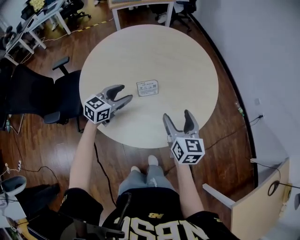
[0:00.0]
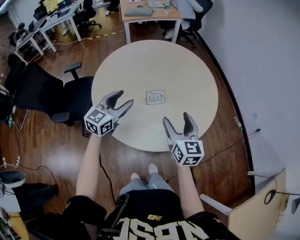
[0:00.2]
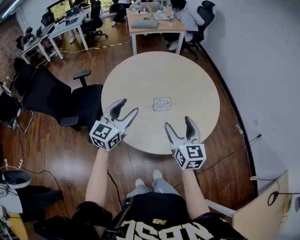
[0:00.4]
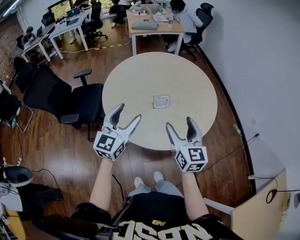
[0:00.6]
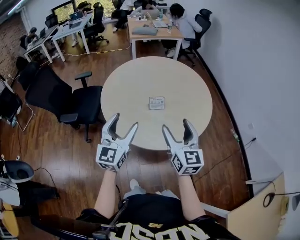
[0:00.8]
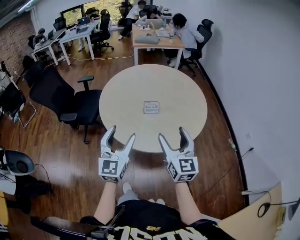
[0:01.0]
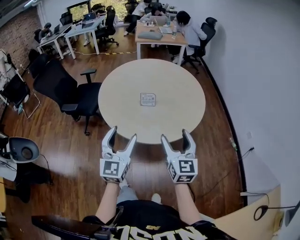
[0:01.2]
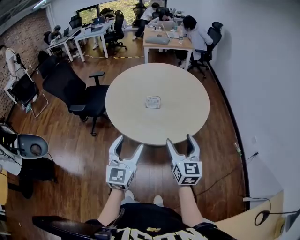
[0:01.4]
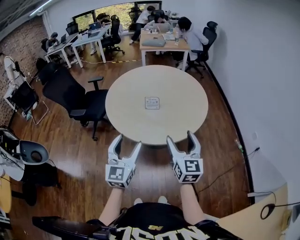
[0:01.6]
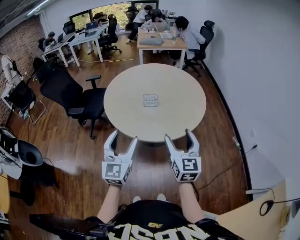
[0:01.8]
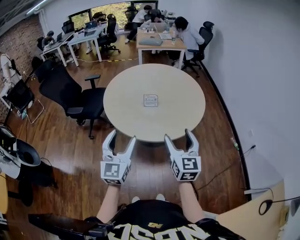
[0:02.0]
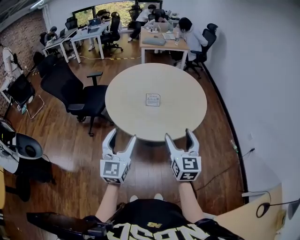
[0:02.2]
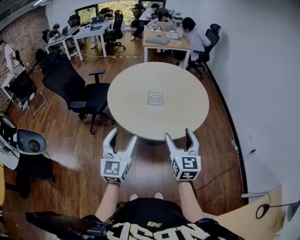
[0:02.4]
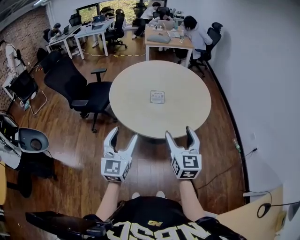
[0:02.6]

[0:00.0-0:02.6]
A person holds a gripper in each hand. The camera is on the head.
0:00.0 to 0:01.2: The left gripper ends up about 40 cm from where it was, and swivels roughly 50 degrees. The right gripper shifts by some 25 cm, and swivels about 20 degrees.
0:01.2 to 0:02.6: Both grippers move backward, some 5 cm.

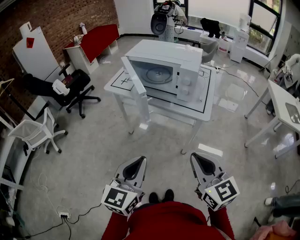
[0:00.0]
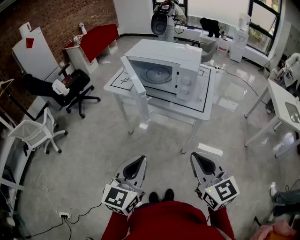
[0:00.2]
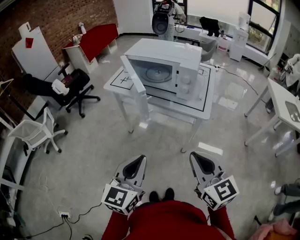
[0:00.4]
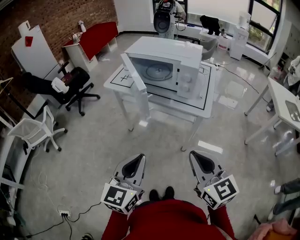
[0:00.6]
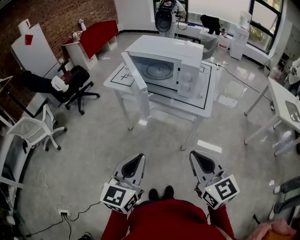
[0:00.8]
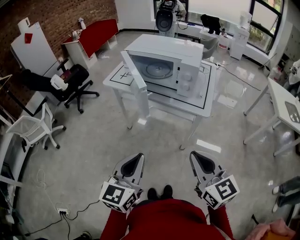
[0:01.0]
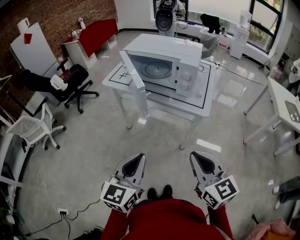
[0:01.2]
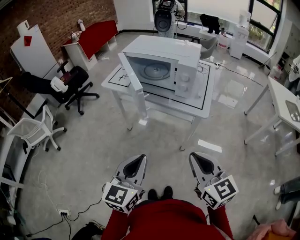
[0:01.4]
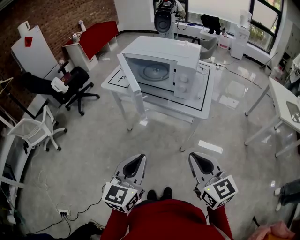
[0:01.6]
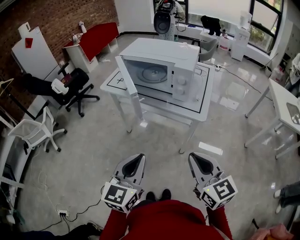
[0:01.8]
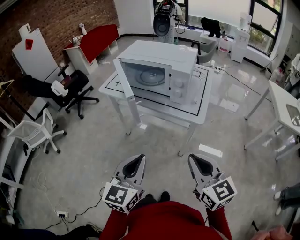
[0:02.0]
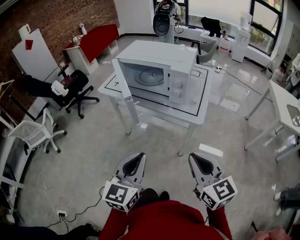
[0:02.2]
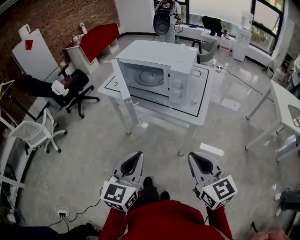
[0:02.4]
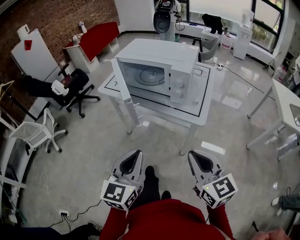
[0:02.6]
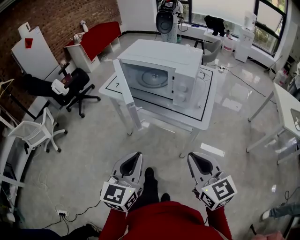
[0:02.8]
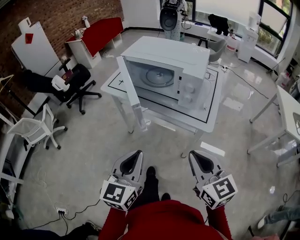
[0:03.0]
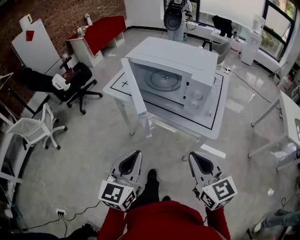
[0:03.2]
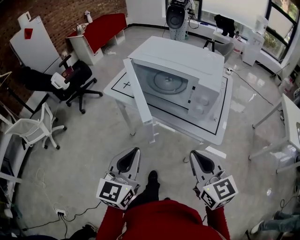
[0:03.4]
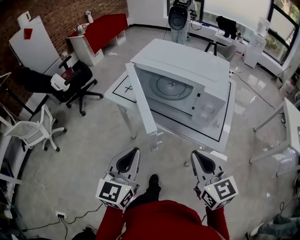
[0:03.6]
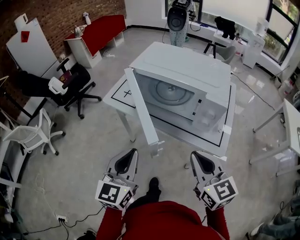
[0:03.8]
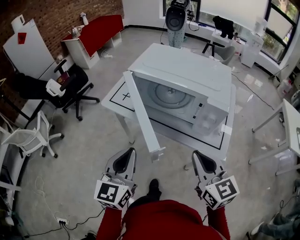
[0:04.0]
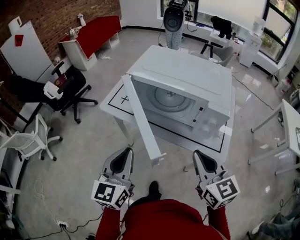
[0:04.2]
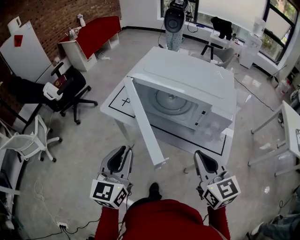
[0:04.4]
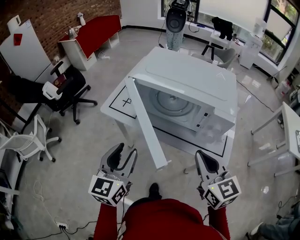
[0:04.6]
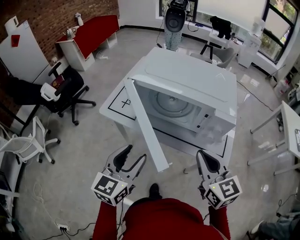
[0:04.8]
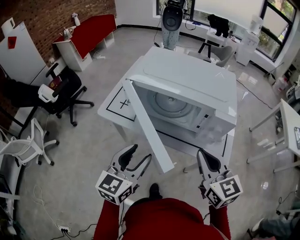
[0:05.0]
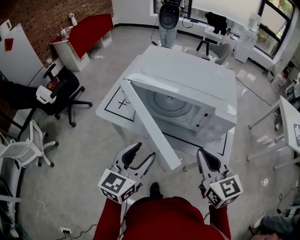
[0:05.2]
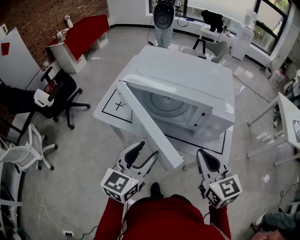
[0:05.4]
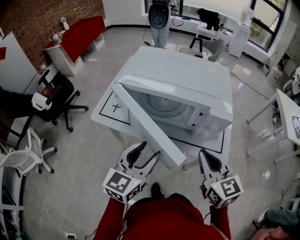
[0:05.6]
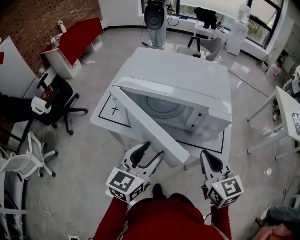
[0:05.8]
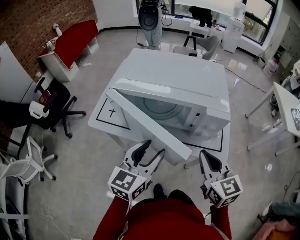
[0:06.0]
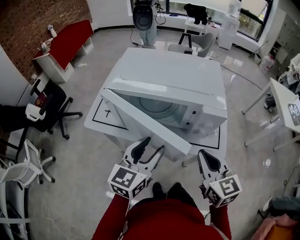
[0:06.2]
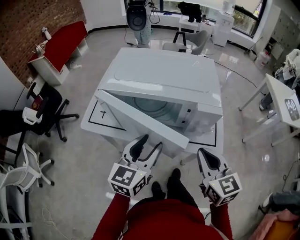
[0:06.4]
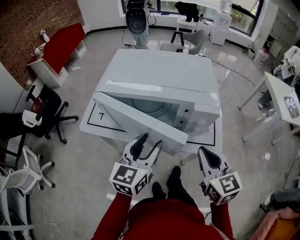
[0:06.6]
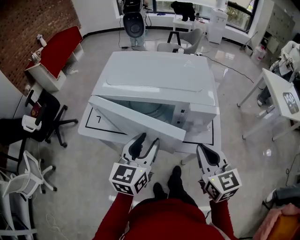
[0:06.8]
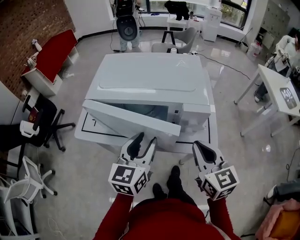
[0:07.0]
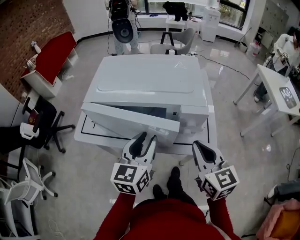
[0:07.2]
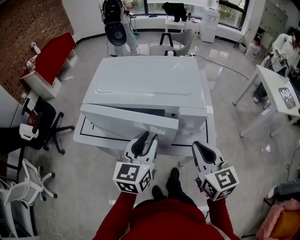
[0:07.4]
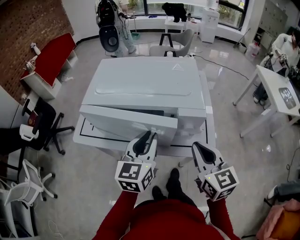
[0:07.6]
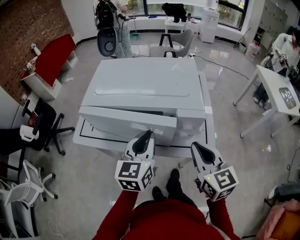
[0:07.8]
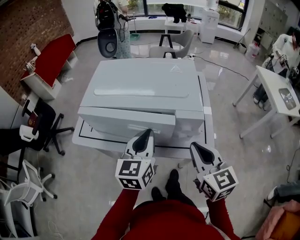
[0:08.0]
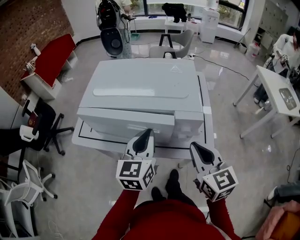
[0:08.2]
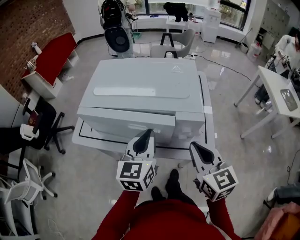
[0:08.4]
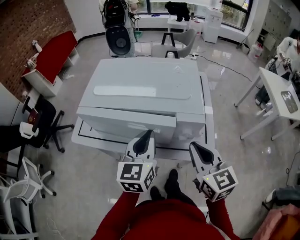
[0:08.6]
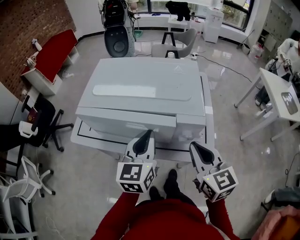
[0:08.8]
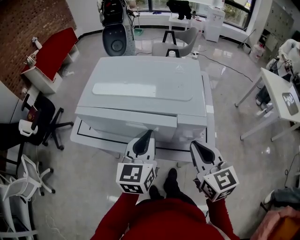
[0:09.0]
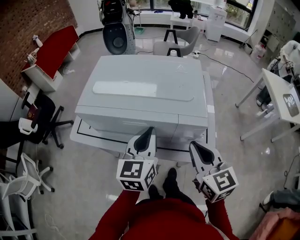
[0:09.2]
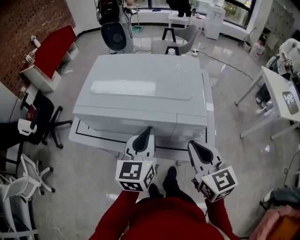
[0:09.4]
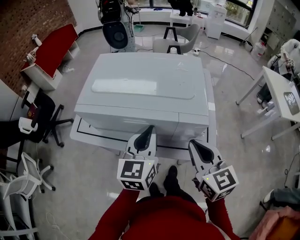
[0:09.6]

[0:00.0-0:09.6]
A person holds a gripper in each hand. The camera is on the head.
0:00.0 to 0:01.6: The grippers move only a little.
0:01.6 to 0:03.2: Both grippers move forward, some 10 cm.
0:03.2 to 0:04.8: Both grippers move forward, about 15 cm. The left gripper opens.
0:04.8 to 0:06.4: The left gripper heads to the right and forward, covering roughly 10 cm.
0:06.4 to 0:08.0: The left gripper moves forward, some 5 cm, and closes up.
0:08.0 to 0:09.6: The grippers make only small movements.

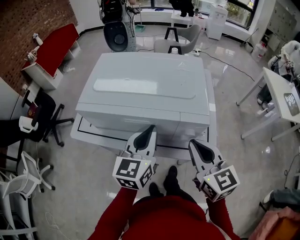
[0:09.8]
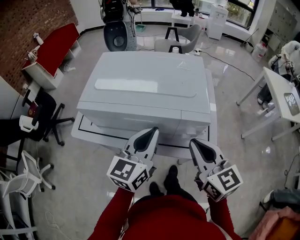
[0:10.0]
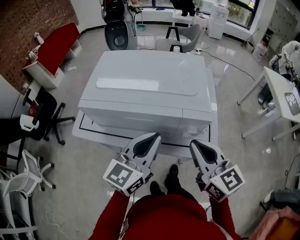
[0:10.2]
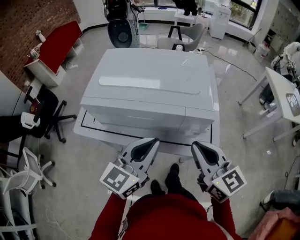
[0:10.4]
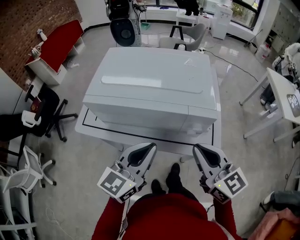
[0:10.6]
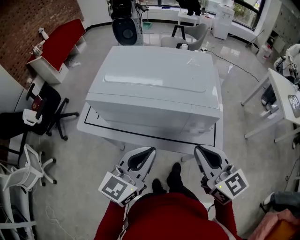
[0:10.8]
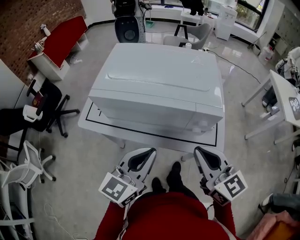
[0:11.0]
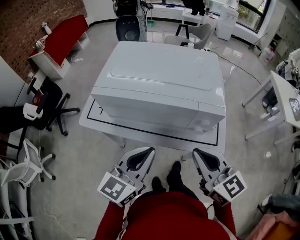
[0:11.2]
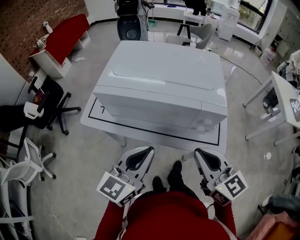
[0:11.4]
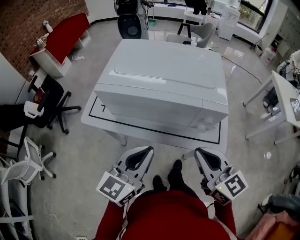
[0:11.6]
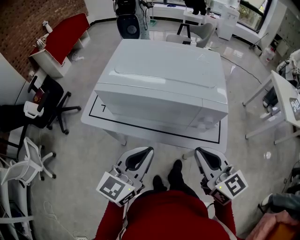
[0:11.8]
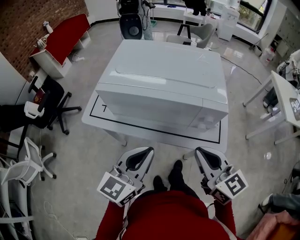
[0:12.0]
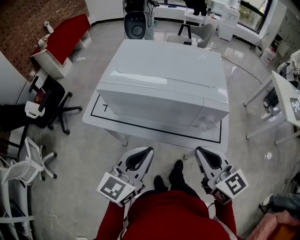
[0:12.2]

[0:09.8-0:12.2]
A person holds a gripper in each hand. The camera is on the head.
0:09.8 to 0:11.0: The left gripper moves backward, approximately 10 cm. Meanwhile the right gripper goes roughly 5 cm backward.
0:11.0 to 0:12.2: The grippers make only small movements.

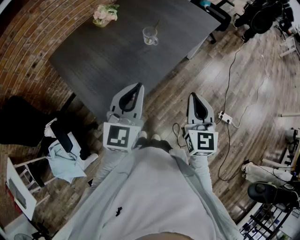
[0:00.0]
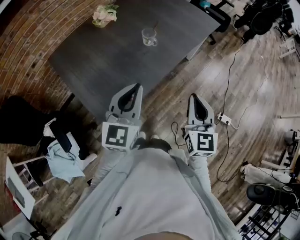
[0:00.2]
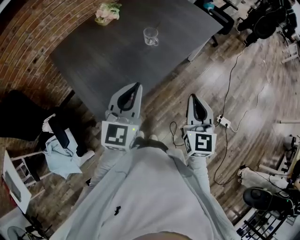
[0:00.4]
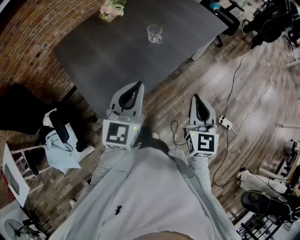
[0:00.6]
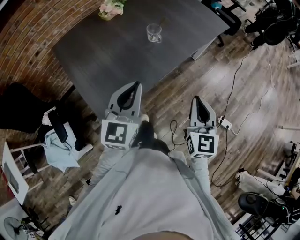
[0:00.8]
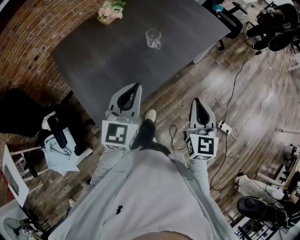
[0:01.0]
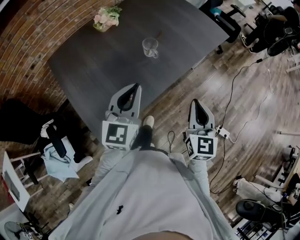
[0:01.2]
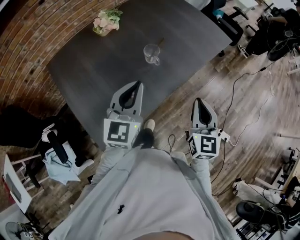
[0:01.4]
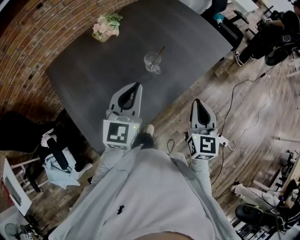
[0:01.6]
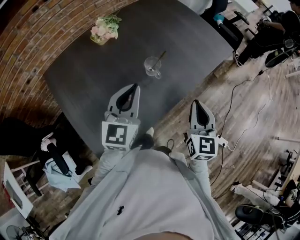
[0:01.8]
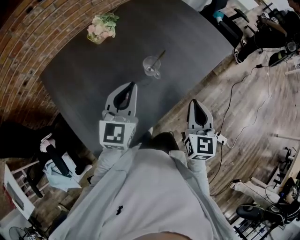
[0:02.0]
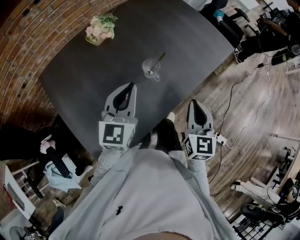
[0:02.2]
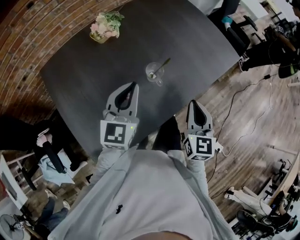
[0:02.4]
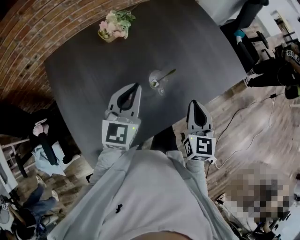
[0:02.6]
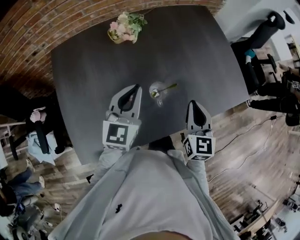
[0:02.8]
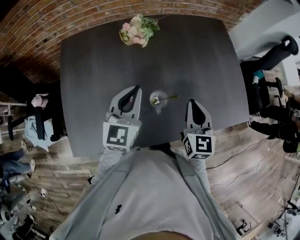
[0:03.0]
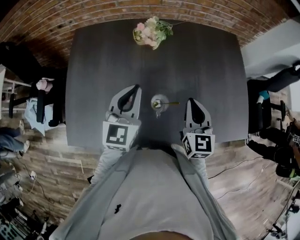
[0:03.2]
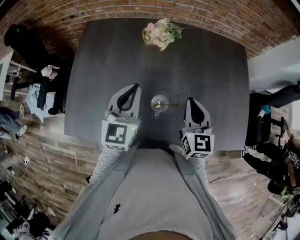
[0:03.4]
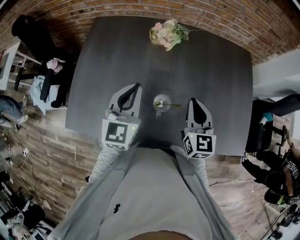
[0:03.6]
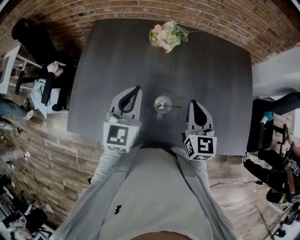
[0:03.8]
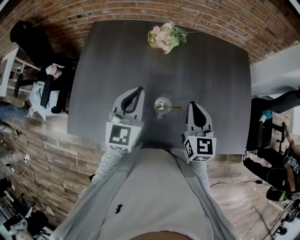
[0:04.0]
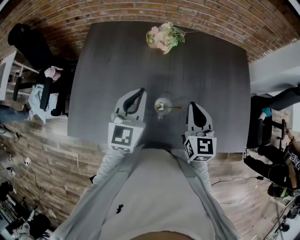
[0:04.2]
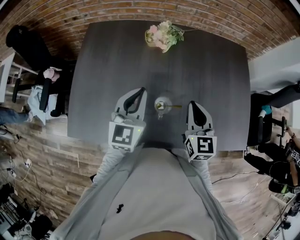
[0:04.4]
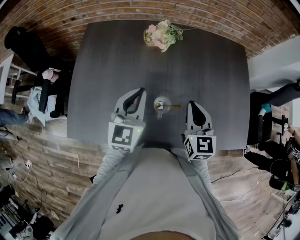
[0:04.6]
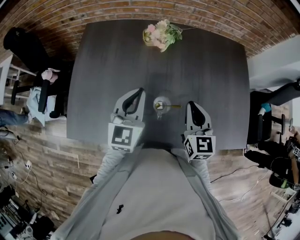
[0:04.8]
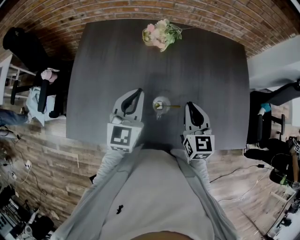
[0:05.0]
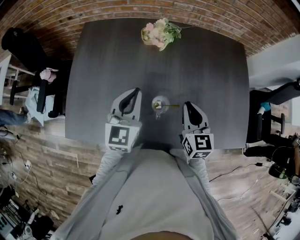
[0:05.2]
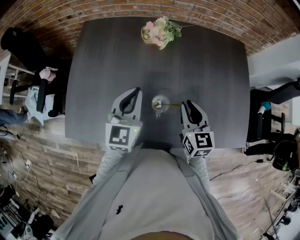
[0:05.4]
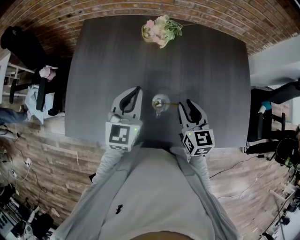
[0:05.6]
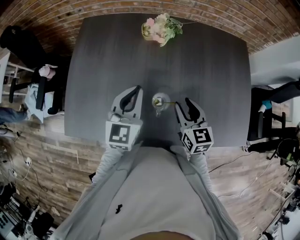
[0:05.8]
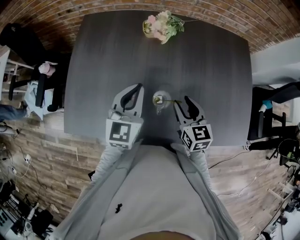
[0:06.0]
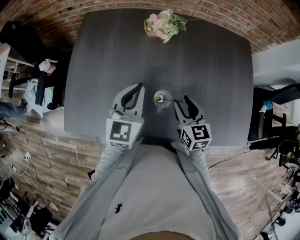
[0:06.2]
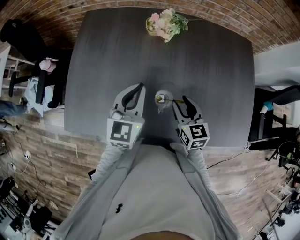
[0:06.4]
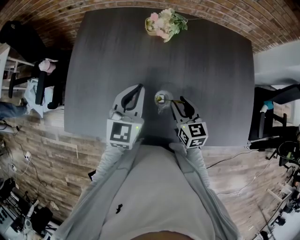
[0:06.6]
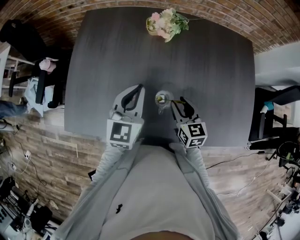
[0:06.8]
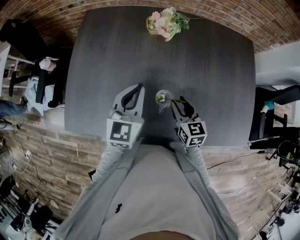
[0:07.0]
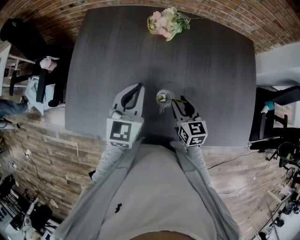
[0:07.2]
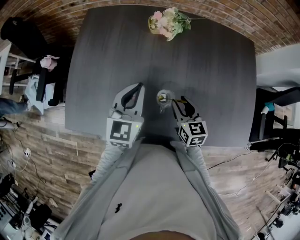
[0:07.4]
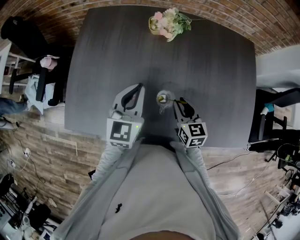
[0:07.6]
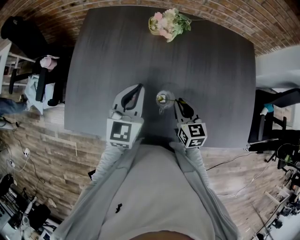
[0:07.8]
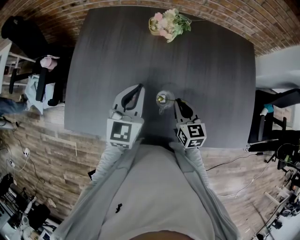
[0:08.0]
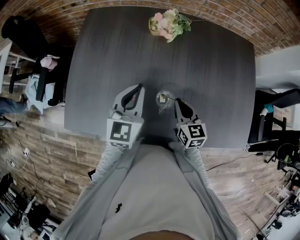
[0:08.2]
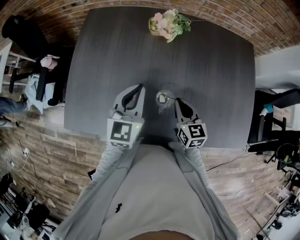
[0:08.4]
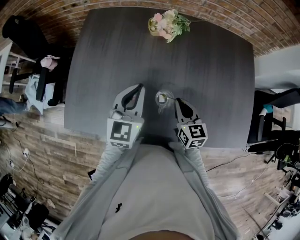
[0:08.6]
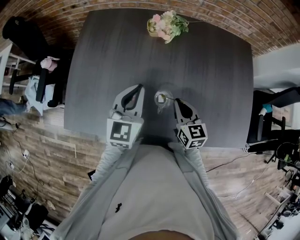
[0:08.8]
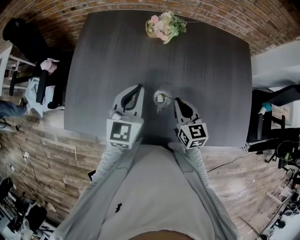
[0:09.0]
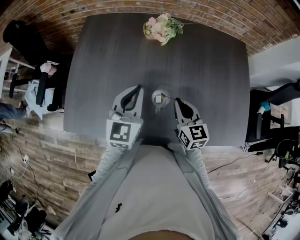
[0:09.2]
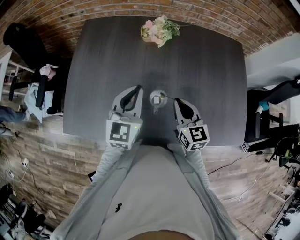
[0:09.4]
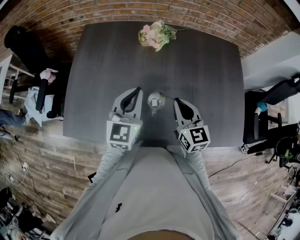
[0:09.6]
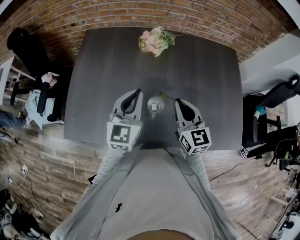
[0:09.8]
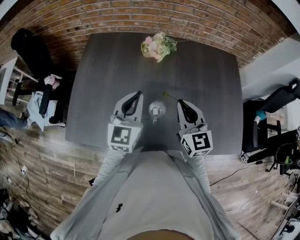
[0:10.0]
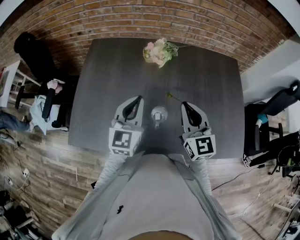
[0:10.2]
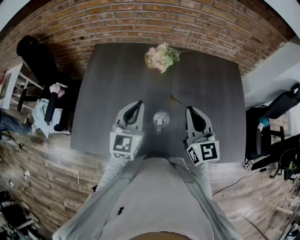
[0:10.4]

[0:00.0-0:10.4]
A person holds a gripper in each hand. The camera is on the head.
0:00.0 to 0:01.4: The two grippers go roughly 15 cm forward.
0:01.4 to 0:03.0: The left gripper changes place by roughly 20 cm, and rotates approximately 30 degrees. The right gripper ends up roughly 30 cm from where it was, and rotates roughly 30 degrees.
0:03.0 to 0:04.4: The grippers move only a little.
0:04.4 to 0:06.0: The right gripper shifts approximately 5 cm downward, and opens.
0:06.0 to 0:07.4: The right gripper moves downward, approximately 5 cm.
0:07.4 to 0:09.0: The right gripper closes.
0:09.0 to 0:10.4: The right gripper shifts about 15 cm upward, and changes its angle by roughly 20 degrees.
